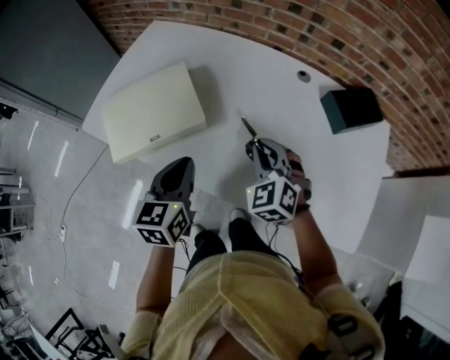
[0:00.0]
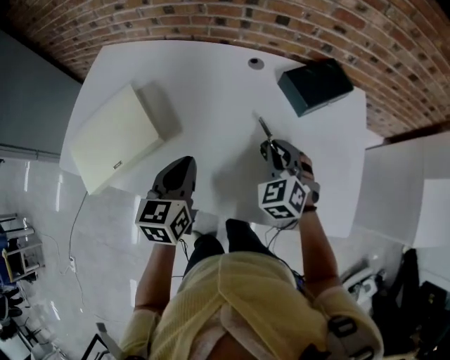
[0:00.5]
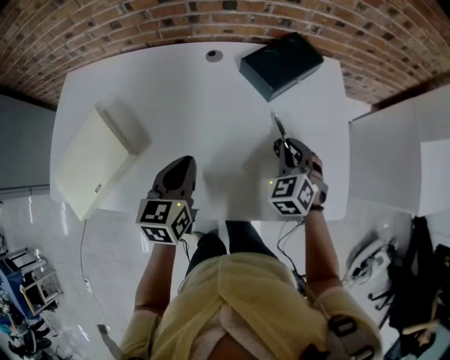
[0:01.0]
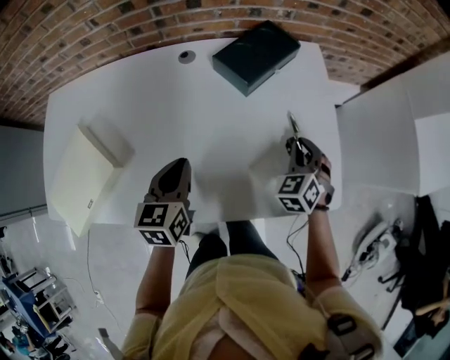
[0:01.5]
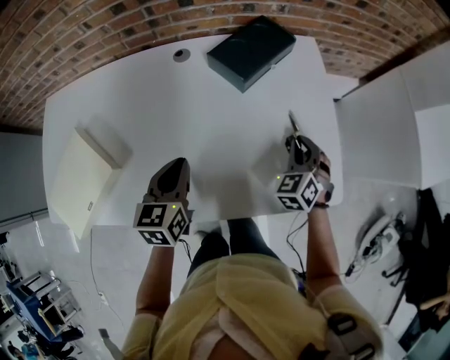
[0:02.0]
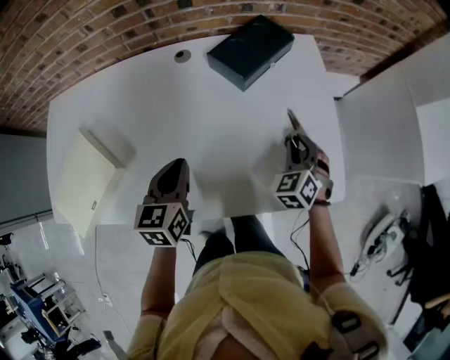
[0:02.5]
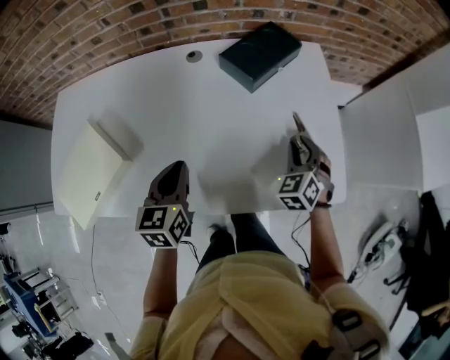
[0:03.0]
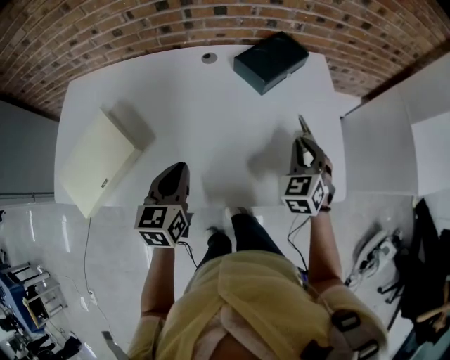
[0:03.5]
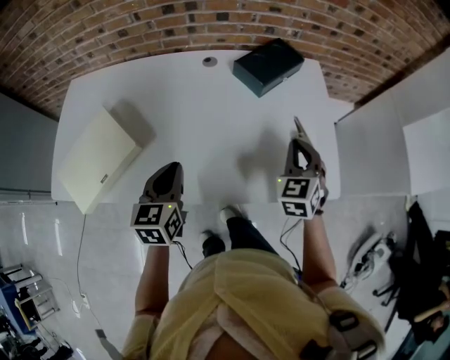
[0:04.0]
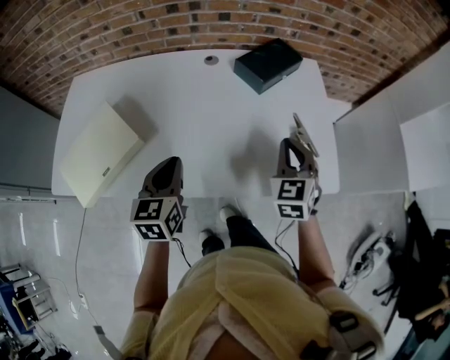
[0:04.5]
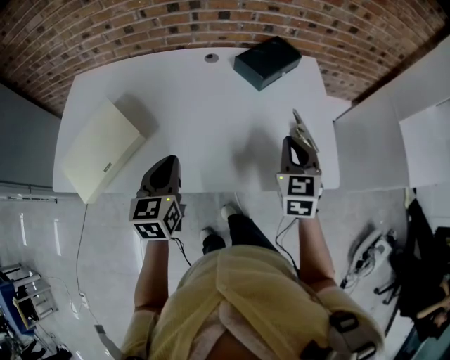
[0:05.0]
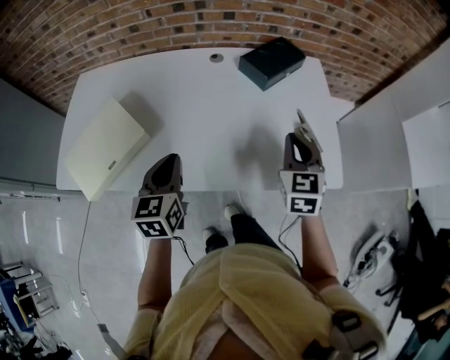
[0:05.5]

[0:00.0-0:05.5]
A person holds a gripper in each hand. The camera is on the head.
0:00.0 to 0:02.0: The left gripper ends up about 25 cm from where it was, and changes its angle by roughly 30 degrees; the right gripper shifts by some 40 cm, and swivels some 50 degrees.
0:02.0 to 0:03.5: The right gripper moves upward and to the left, approximately 10 cm. The left gripper goes about 10 cm backward.
0:03.5 to 0:05.5: The right gripper travels upward and backward by approximately 10 cm, and swivels roughly 20 degrees. Meanwhile the left gripper ends up about 5 cm from where it was.

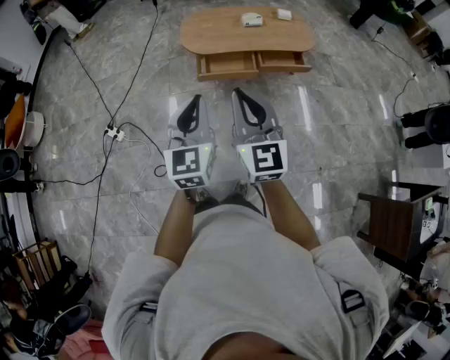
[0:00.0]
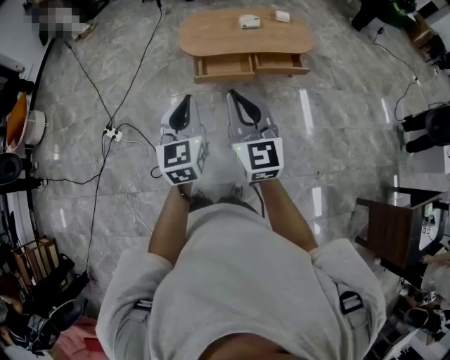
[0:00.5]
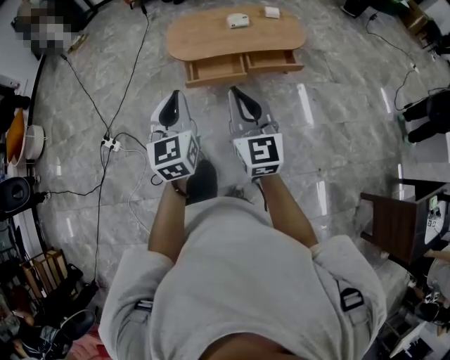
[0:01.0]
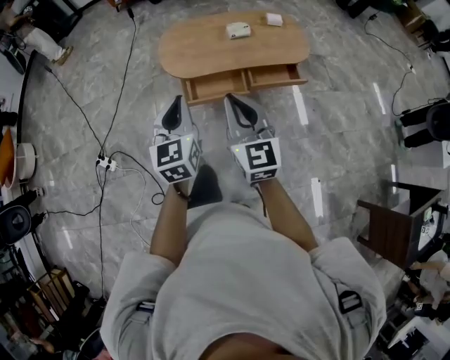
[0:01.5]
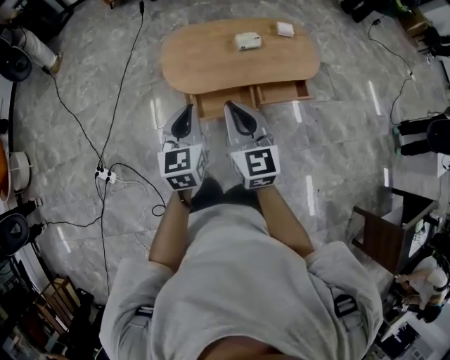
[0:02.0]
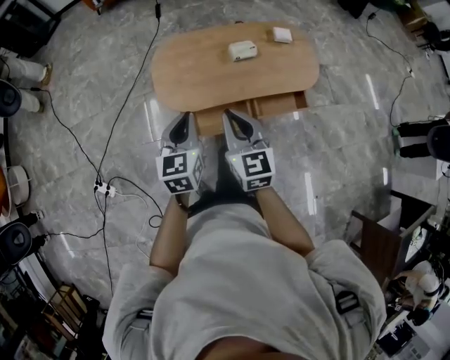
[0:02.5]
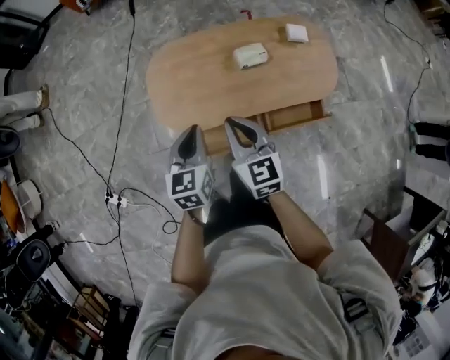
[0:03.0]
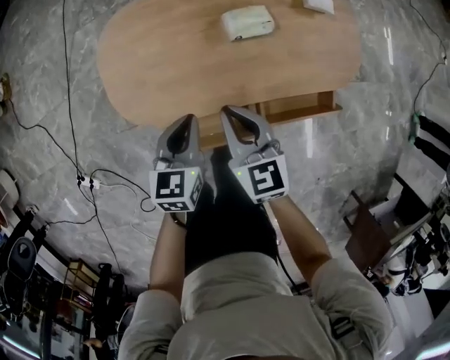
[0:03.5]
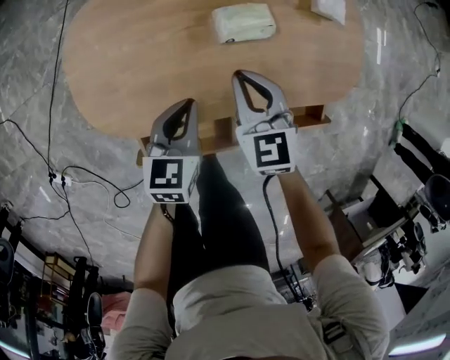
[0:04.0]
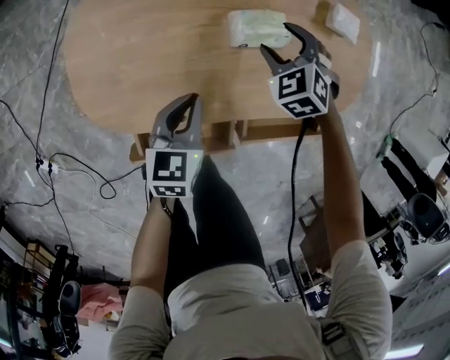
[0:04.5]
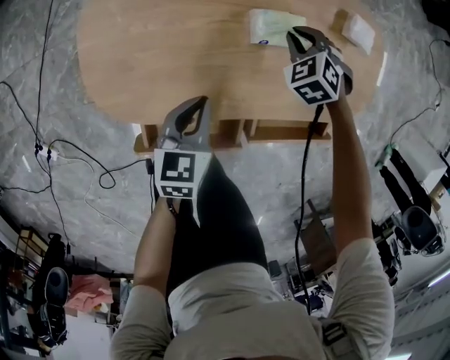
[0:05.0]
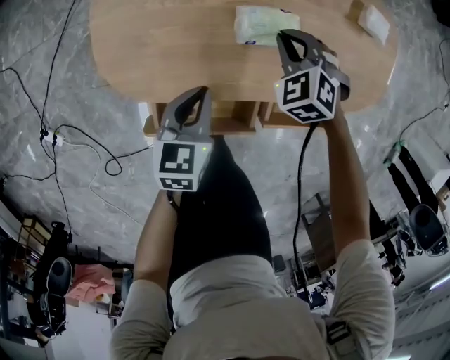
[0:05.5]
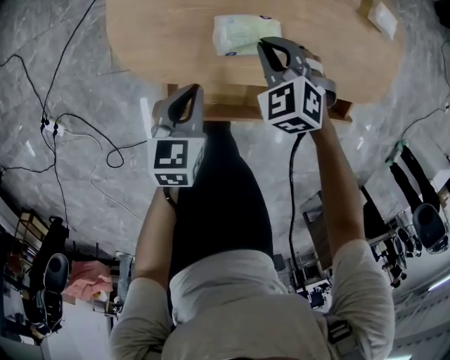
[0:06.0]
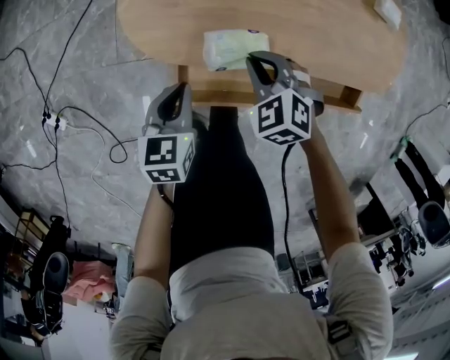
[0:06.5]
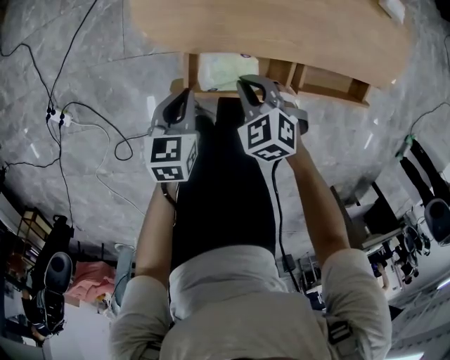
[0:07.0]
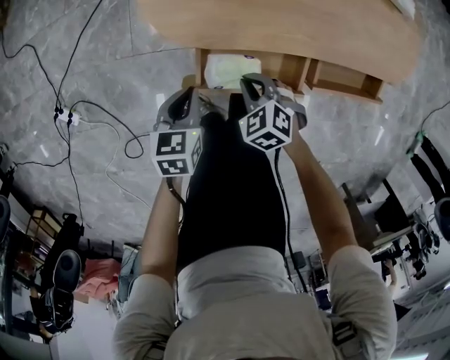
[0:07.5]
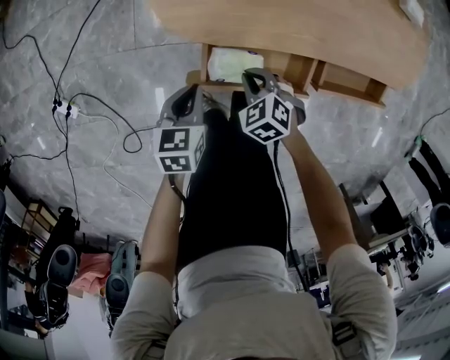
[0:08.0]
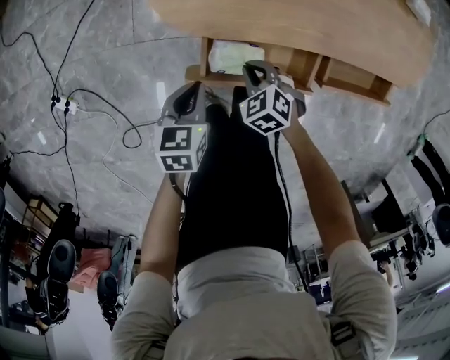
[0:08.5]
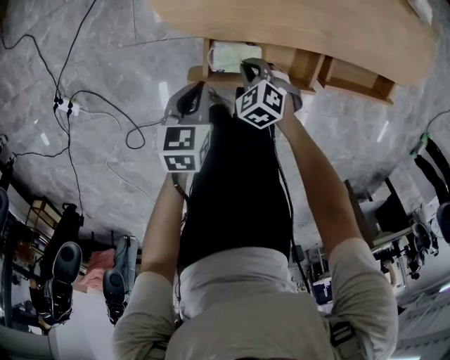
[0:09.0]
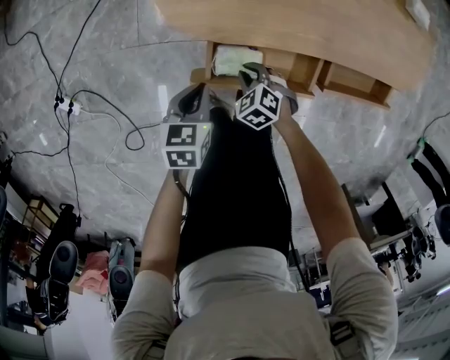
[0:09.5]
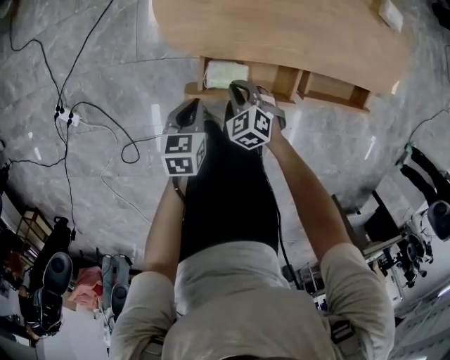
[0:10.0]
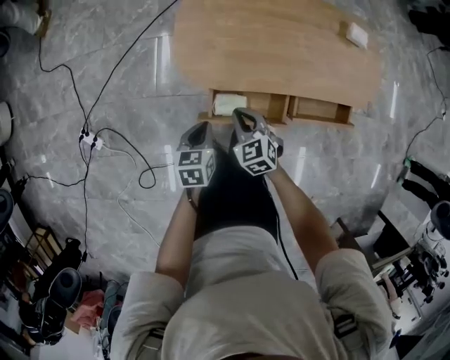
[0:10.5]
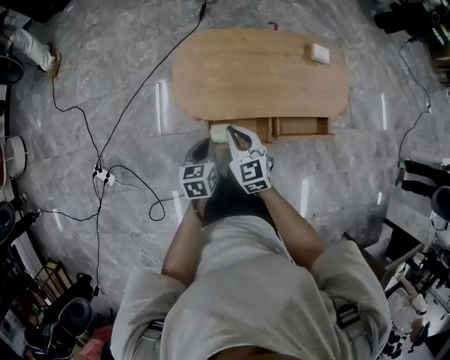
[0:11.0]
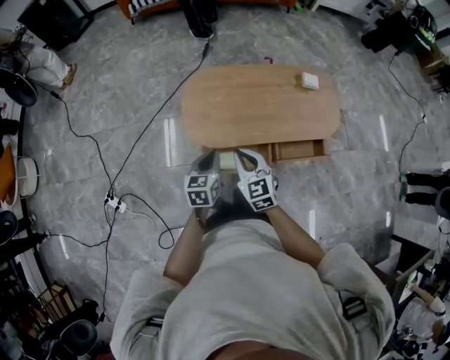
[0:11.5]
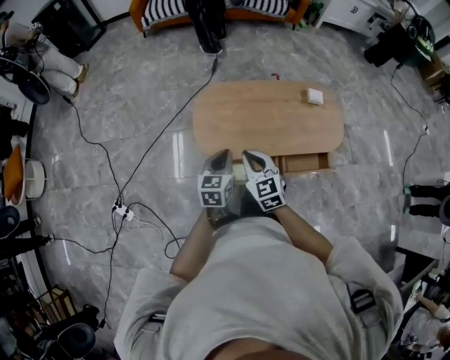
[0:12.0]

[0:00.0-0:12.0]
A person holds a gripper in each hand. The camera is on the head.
0:00.0 to 0:02.0: Both grippers move forward, roughly 40 cm.
0:02.0 to 0:04.0: The pair of grippers is taken forward and to the right, approximately 40 cm. Both grippers travel together downward, approximately 40 cm. The left gripper changes its angle by approximately 30 degrees; the right gripper rotates roughly 30 degrees.
0:04.0 to 0:06.0: The left gripper shifts about 15 cm backward and to the left; the right gripper shifts roughly 10 cm to the left and downward, goes forward and returns, about 10 cm each way, rotates roughly 40 degrees, and opens and closes again.
0:06.0 to 0:08.0: The left gripper moves to the left, backward and downward, roughly 15 cm. Meanwhile the right gripper heads backward, to the left and downward, covering roughly 25 cm.
0:08.0 to 0:10.0: The right gripper travels downward and back again, approximately 5 cm each way.
0:10.0 to 0:12.0: Both grippers move upward, roughly 40 cm. The right gripper points its fingers some 40 degrees further upward. Meanwhile the left gripper swivels about 30 degrees.

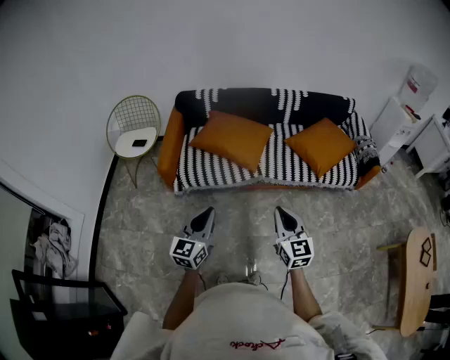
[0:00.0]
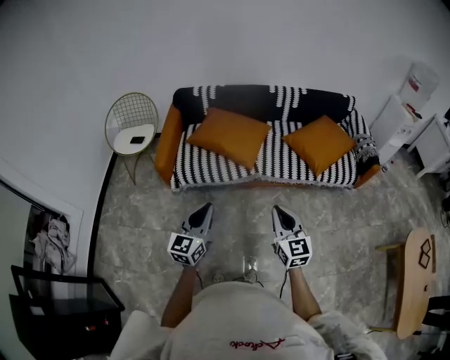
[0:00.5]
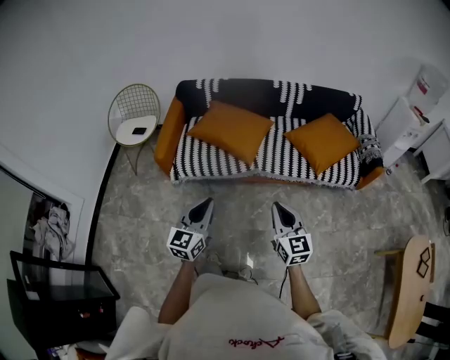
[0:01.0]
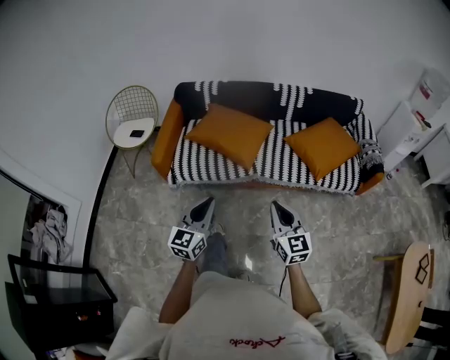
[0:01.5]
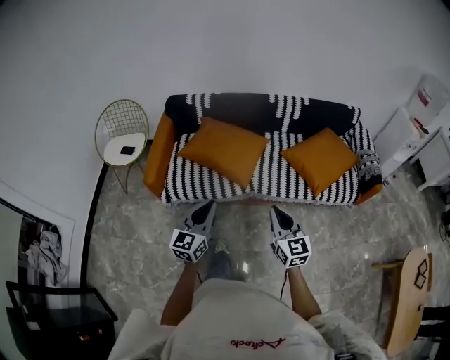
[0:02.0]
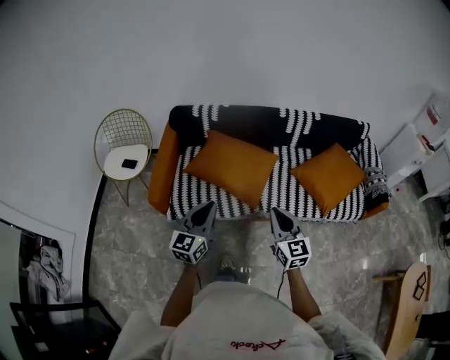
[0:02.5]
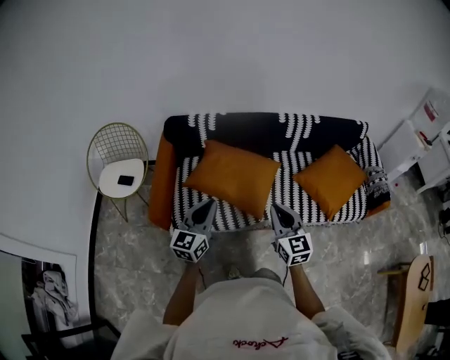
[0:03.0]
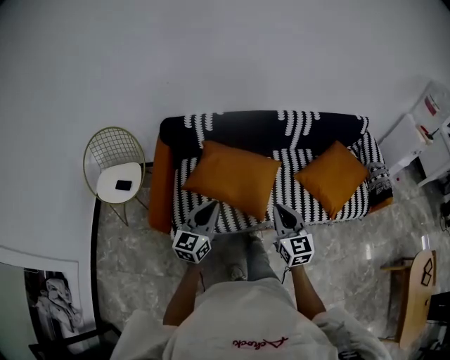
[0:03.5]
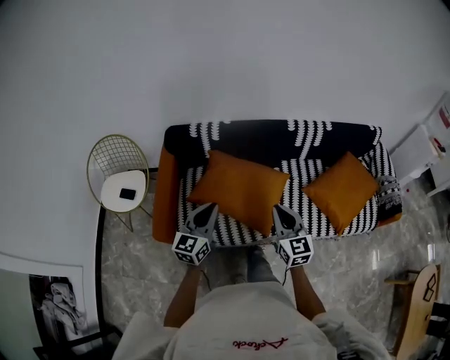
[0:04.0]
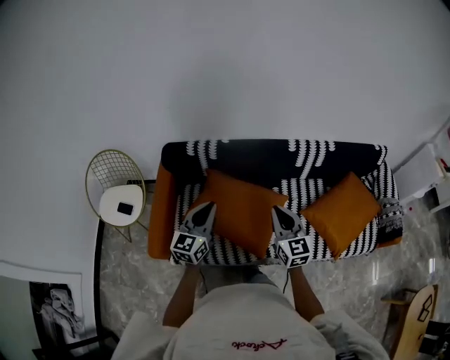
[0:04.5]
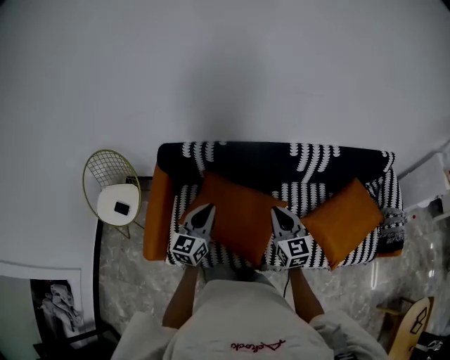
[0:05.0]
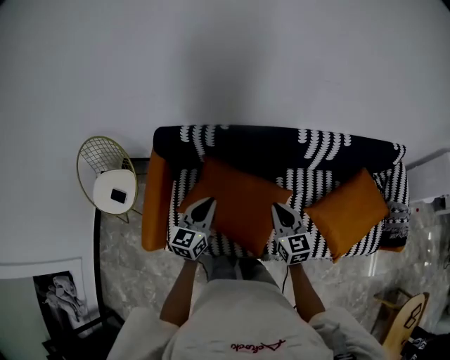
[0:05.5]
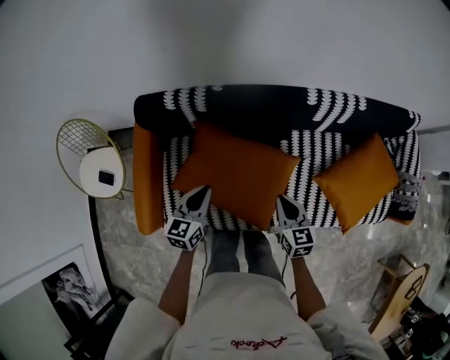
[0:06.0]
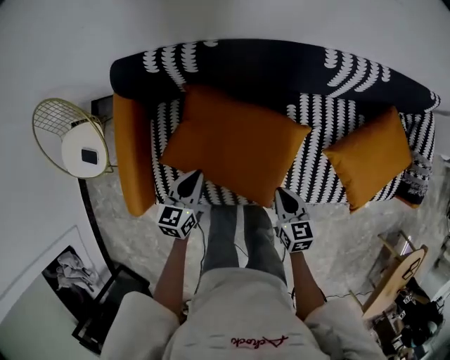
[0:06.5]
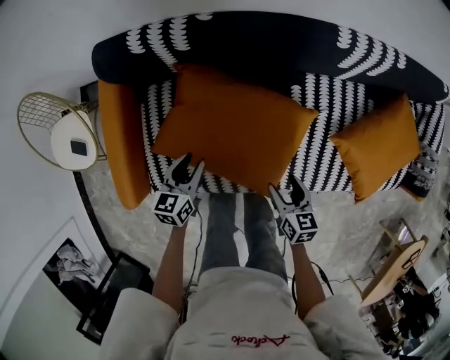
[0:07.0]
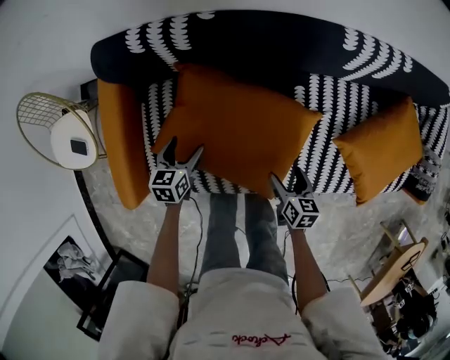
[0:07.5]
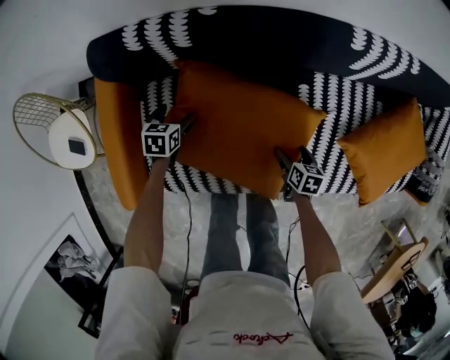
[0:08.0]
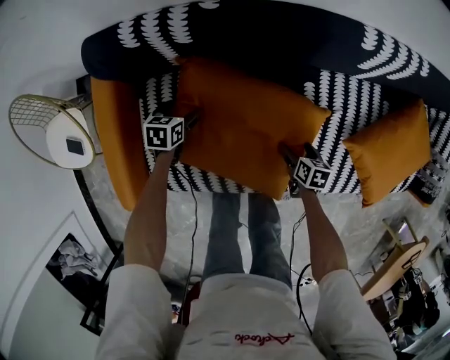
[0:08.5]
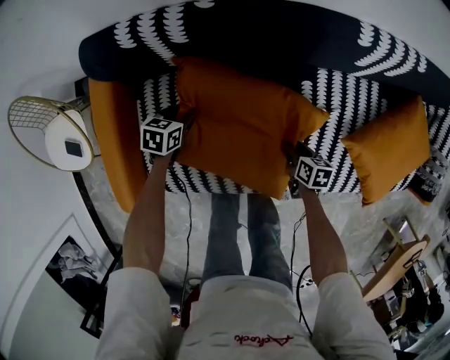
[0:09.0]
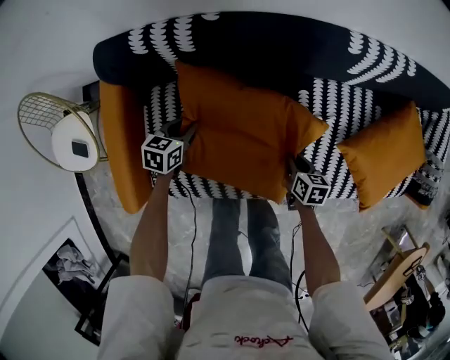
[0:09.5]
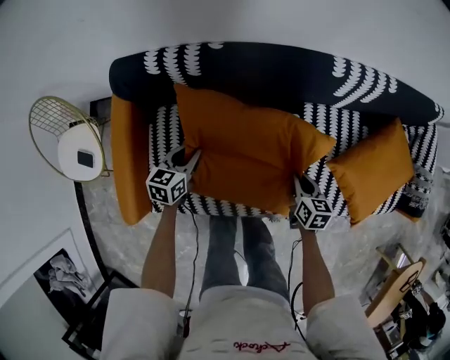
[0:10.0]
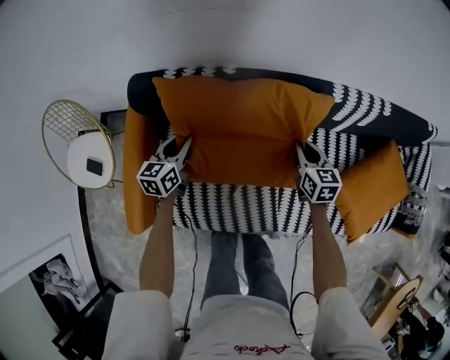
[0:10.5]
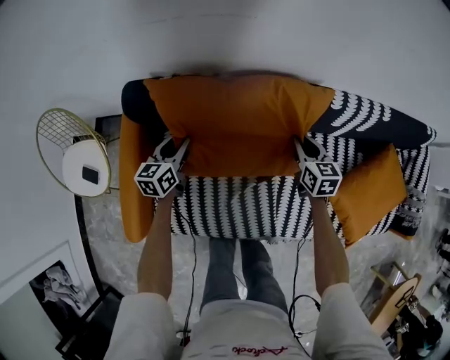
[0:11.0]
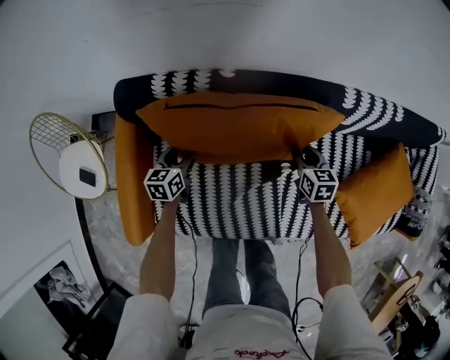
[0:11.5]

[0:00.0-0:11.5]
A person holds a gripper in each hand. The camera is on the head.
0:00.0 to 0:02.0: Both grippers move forward, roughly 15 cm.
0:02.0 to 0:04.0: The grippers both shift forward and to the left by some 35 cm.
0:04.0 to 0:06.0: Both grippers travel together forward and downward, roughly 30 cm. The left gripper turns by approximately 20 degrees. The right gripper rotates about 30 degrees.
0:06.0 to 0:07.5: Both grippers move downward, some 25 cm. The left gripper swivels approximately 20 degrees, and opens its fingers. The right gripper rotates some 30 degrees, and opens its fingers.
0:07.5 to 0:09.5: The grippers both shift forward by about 5 cm. The right gripper closes. The left gripper closes.
0:09.5 to 0:11.5: The left gripper goes roughly 10 cm forward and to the left, reaches about 15 cm upward, then returns, and changes its angle by approximately 20 degrees. Meanwhile the right gripper goes about 20 cm forward, and swivels about 20 degrees.
